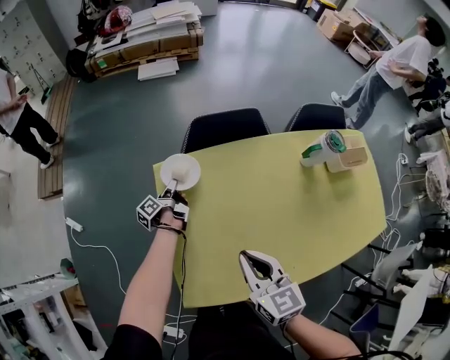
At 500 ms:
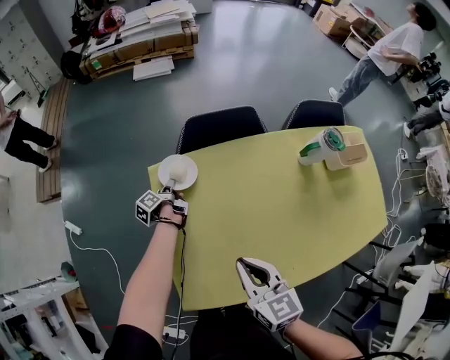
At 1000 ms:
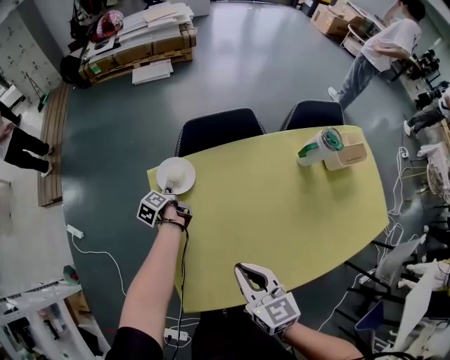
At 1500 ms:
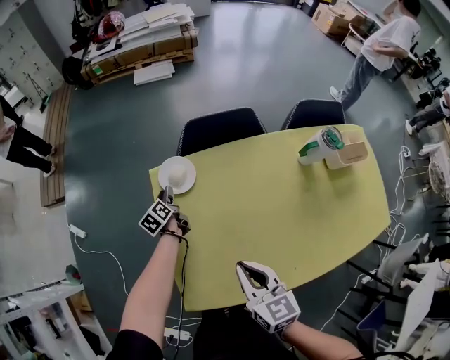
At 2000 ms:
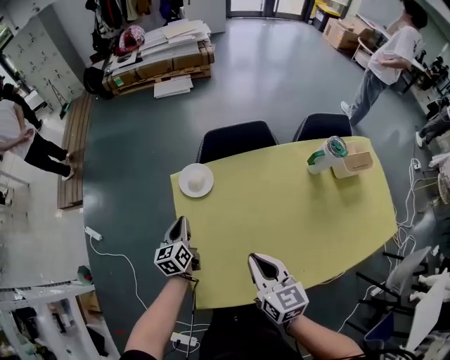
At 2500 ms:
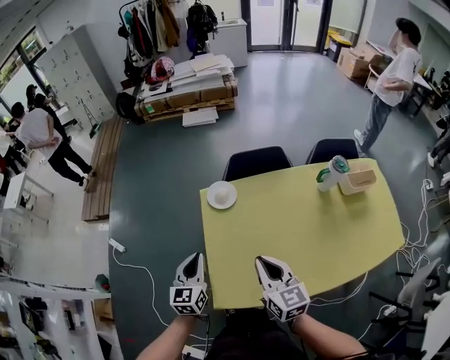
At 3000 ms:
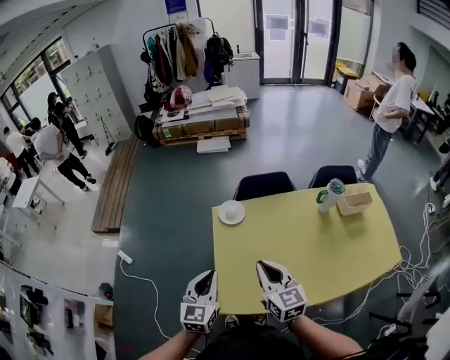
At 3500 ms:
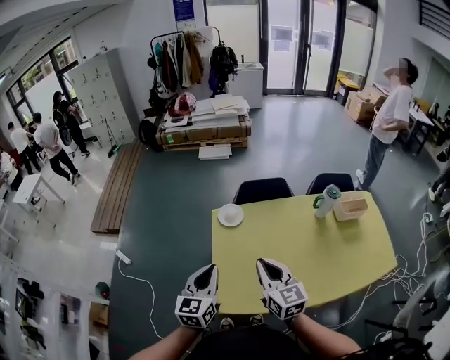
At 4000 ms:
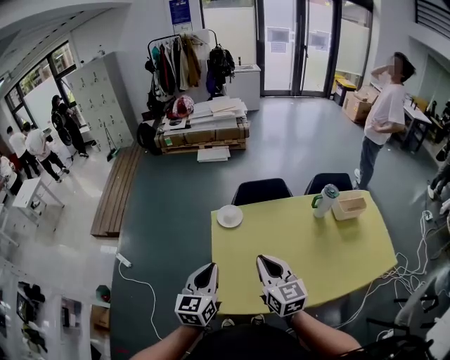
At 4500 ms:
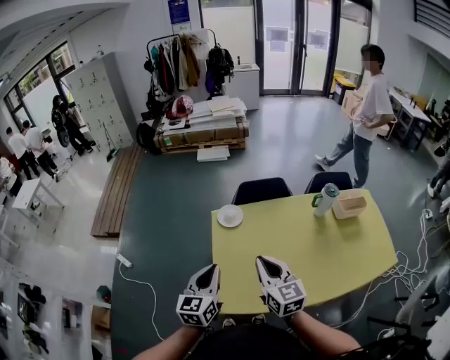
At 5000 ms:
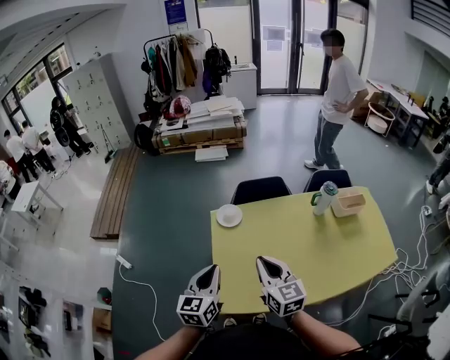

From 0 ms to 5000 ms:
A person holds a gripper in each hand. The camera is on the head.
From 0 ms to 2500 ms: The left gripper moves upward and backward, some 35 cm, rolls clockwise, seen from behind, by approximately 80 degrees, and opens, then closes once more, while the right gripper heads upward, covering approximately 5 cm.
From 2500 ms to 5000 ms: The left gripper goes some 15 cm upward and backward, while the right gripper is displaced upward by roughly 10 cm.

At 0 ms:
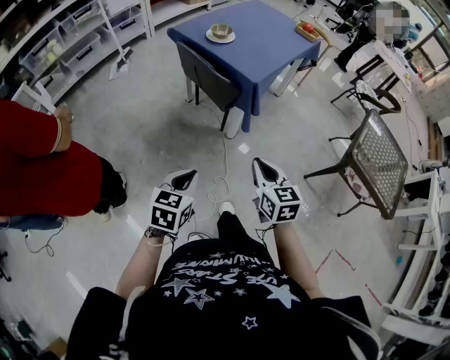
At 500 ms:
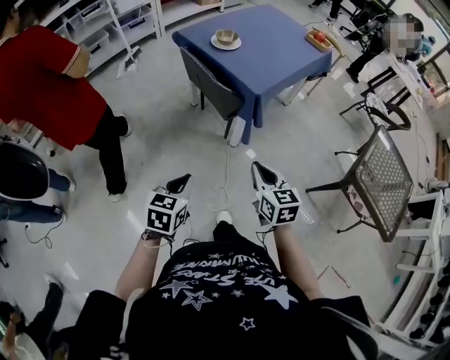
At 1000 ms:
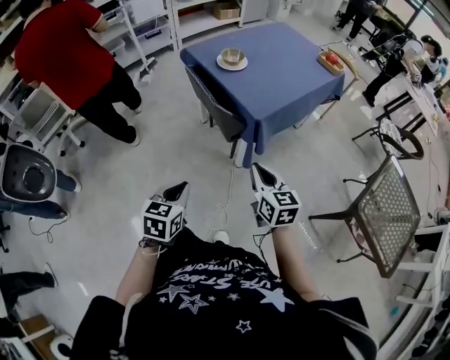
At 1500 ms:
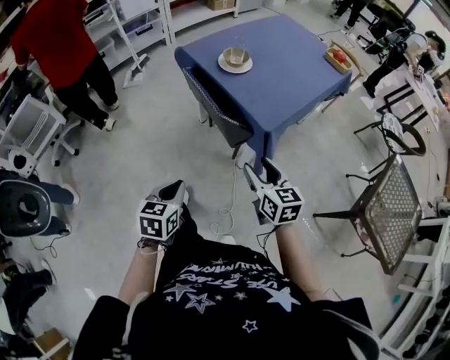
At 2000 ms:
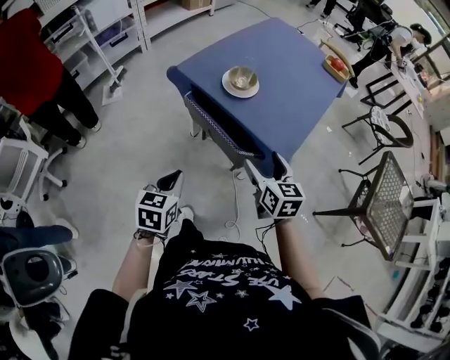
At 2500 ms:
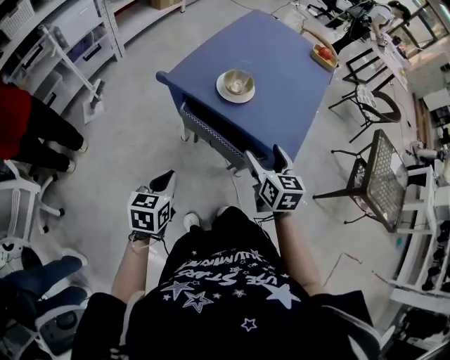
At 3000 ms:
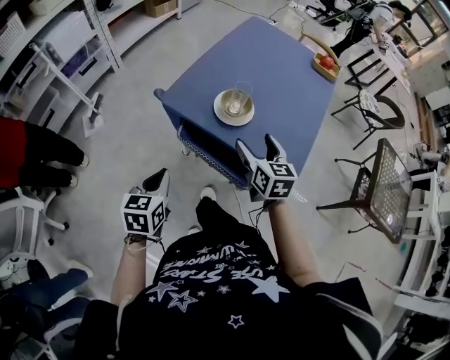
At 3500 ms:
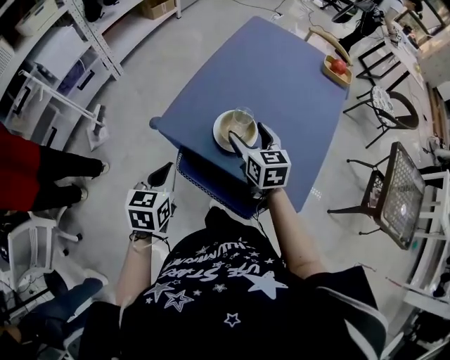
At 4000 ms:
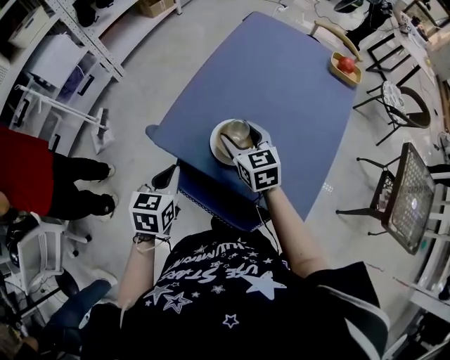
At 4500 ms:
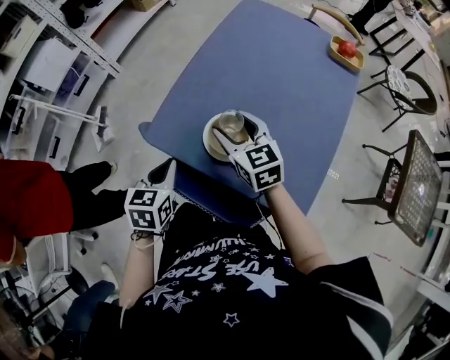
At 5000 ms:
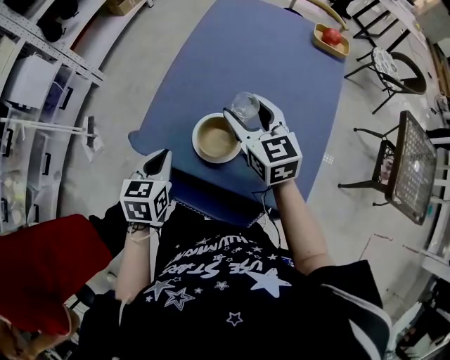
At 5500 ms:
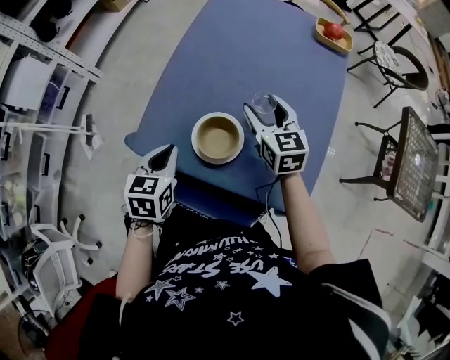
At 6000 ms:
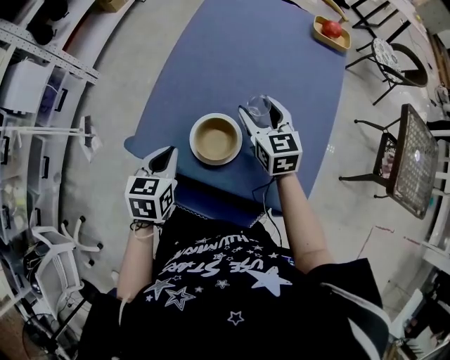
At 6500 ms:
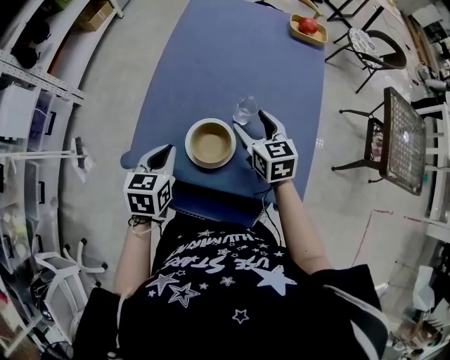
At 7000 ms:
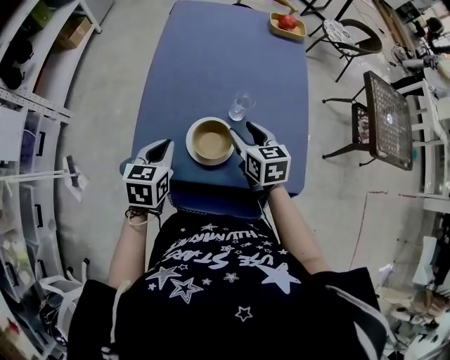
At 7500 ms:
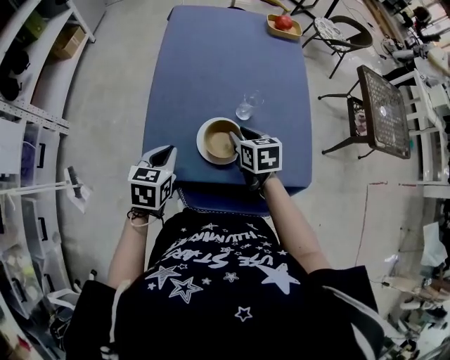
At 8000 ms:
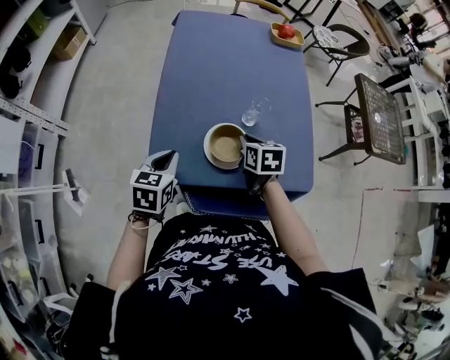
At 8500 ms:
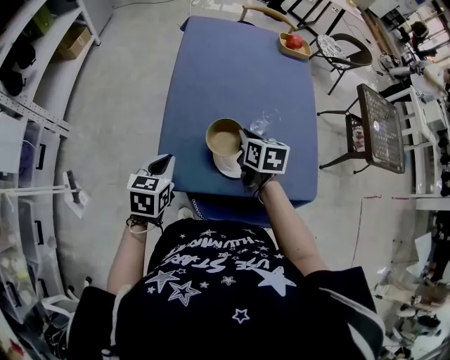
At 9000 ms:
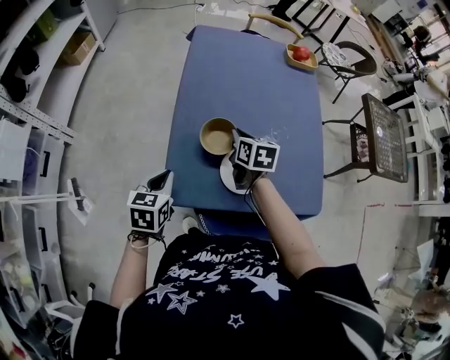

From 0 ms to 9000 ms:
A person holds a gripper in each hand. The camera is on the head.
From 0 ms to 2000 ms: The grippers both shift forward by some 40 cm. The right gripper opens up.
From 2000 ms to 4500 ms: Both grippers move forward, about 35 cm.
From 4500 ms to 7000 ms: The left gripper ends up some 10 cm from where it was, and swivels roughly 20 degrees, while the right gripper moves roughly 10 cm, and turns by about 40 degrees.
From 7000 ms to 9000 ms: The left gripper goes some 10 cm to the left. Meanwhile the right gripper goes some 15 cm to the left and forward, and closes its fingers.

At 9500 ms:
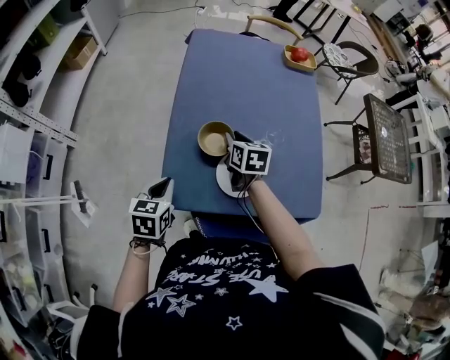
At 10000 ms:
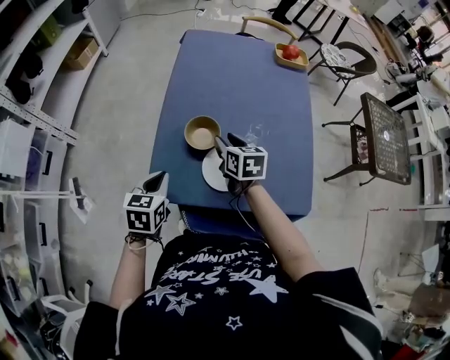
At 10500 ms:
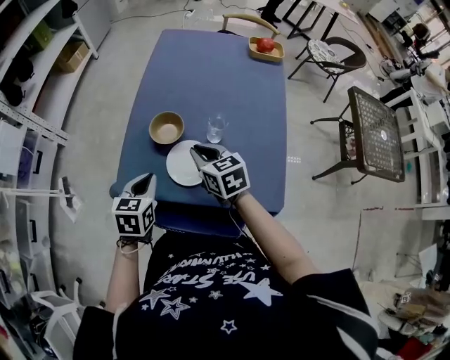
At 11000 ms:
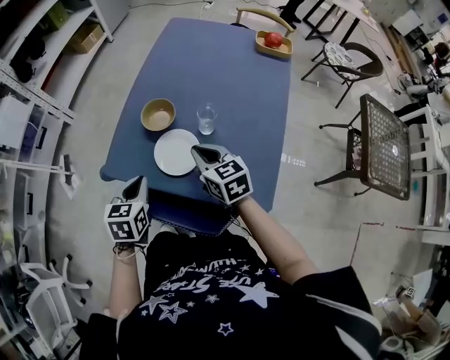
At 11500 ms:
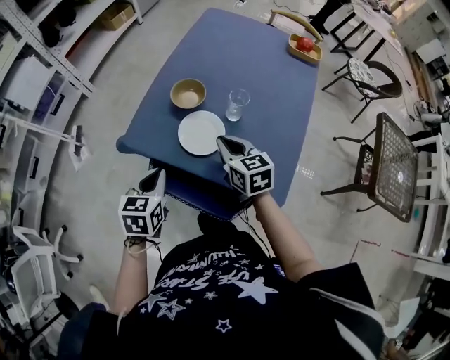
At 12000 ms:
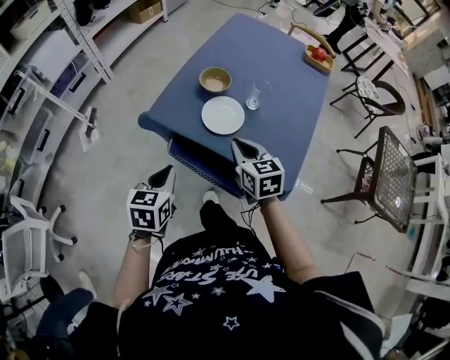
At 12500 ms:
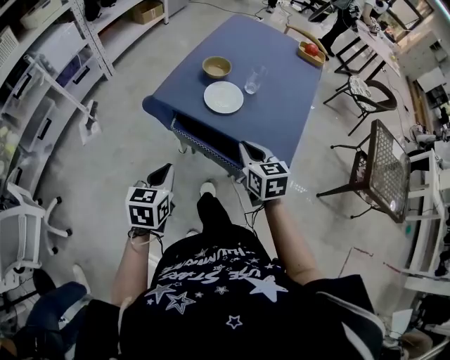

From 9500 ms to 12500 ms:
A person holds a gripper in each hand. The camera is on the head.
From 9500 ms to 11000 ms: The right gripper ends up approximately 15 cm from where it was, and turns by about 40 degrees; the left gripper changes place by approximately 15 cm.
From 11000 ms to 12500 ms: Both grippers move backward, about 20 cm.

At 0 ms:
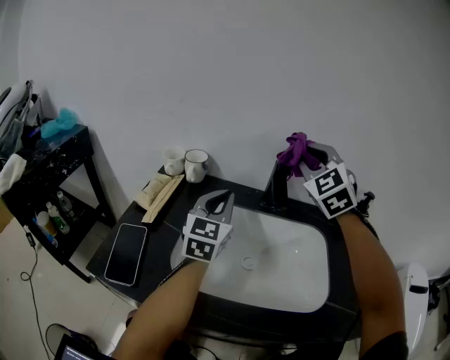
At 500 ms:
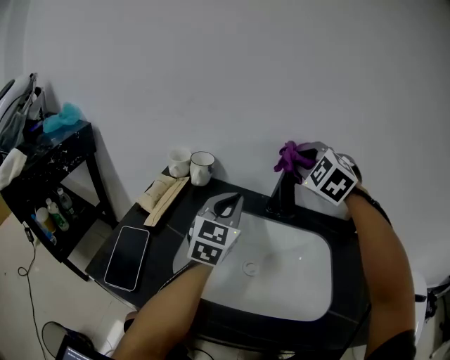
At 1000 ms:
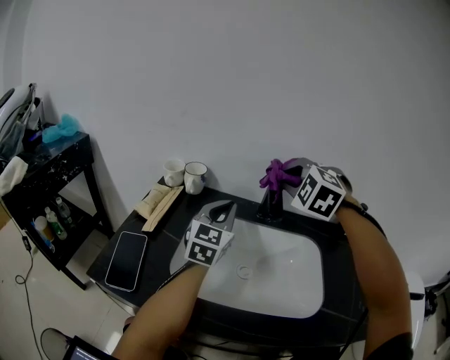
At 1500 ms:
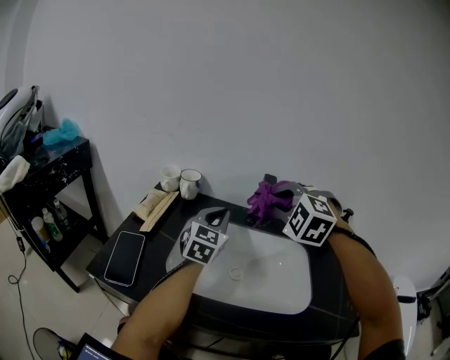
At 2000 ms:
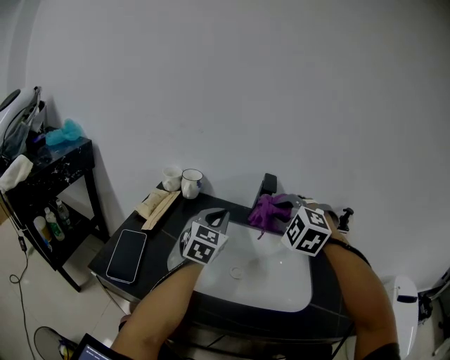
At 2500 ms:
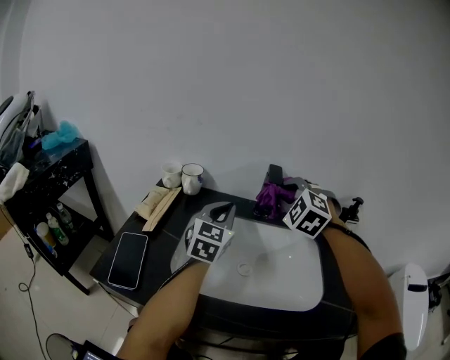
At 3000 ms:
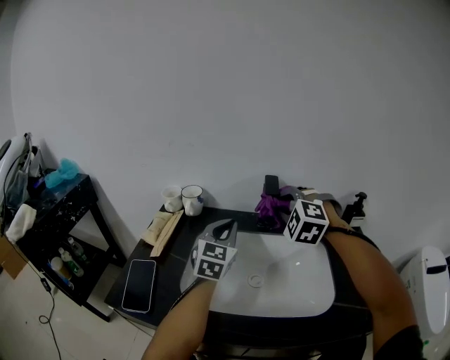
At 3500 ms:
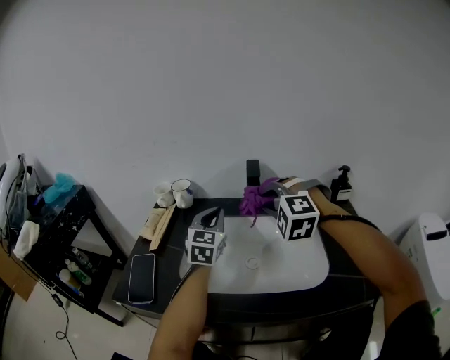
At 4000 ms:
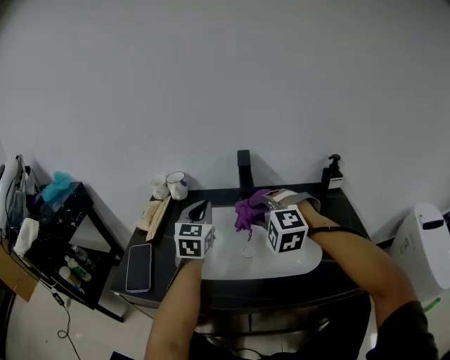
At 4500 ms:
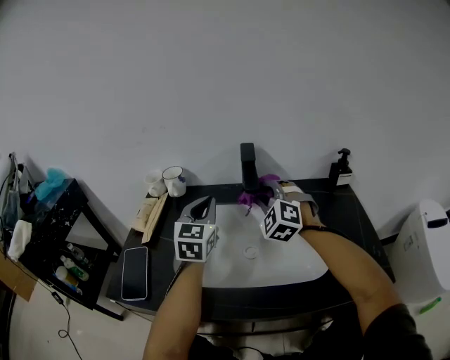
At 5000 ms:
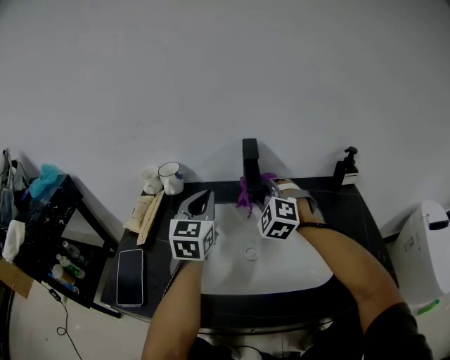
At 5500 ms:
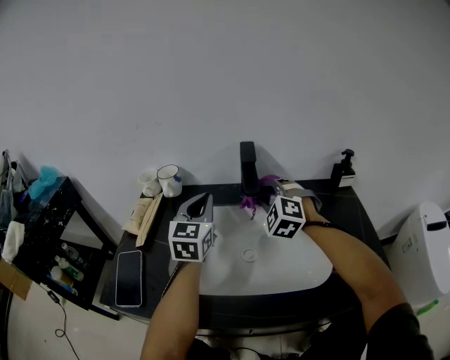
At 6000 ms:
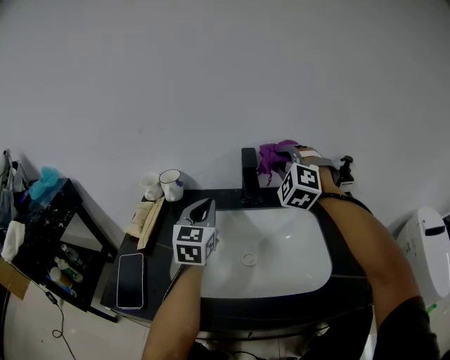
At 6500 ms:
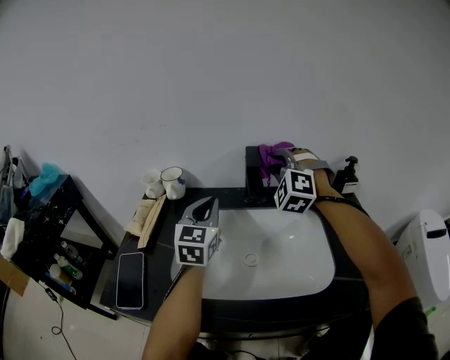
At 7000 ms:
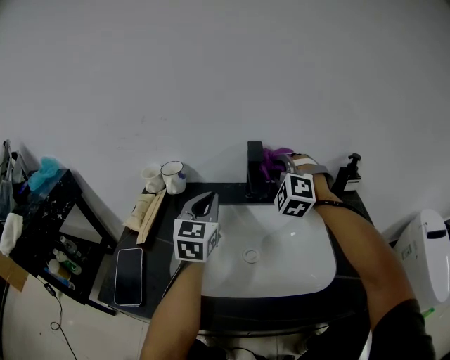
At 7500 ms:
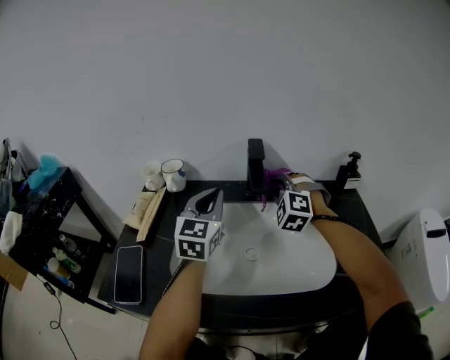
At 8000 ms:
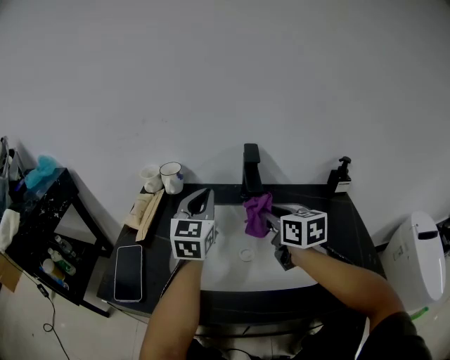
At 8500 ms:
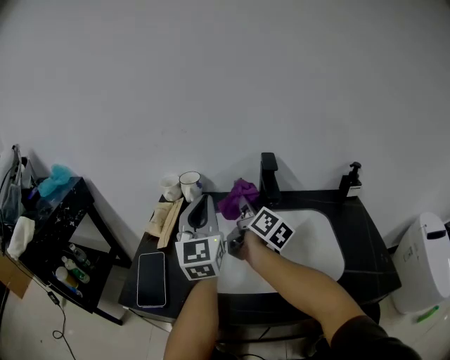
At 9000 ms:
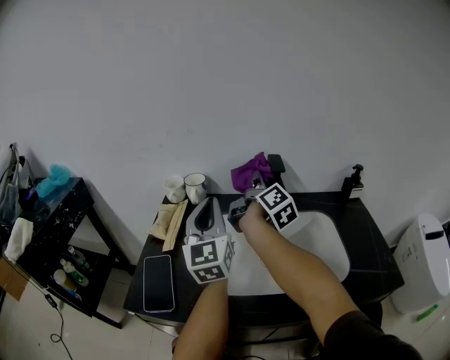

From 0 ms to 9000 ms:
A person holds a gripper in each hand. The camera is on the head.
From 0 ms to 2000 ms: The right gripper travels downward and backward by about 15 cm, and changes its angle by roughly 30 degrees.
From 2000 ms to 4500 ms: The right gripper swings forward and backward, roughly 10 cm each way, with 2 reversals, and swivels some 20 degrees.
From 4500 ms to 7000 ms: The right gripper moves forward, roughly 5 cm, and reaches approximately 10 cm upward, then returns.
From 7000 ms to 9000 ms: The right gripper moves to the left, approximately 5 cm, reaches about 10 cm backward, then returns, and rotates around the line of its fingers by approximately 140 degrees, clockwise from behind. Meanwhile the left gripper goes about 10 cm to the left, upward and backward, and turns by approximately 20 degrees.
